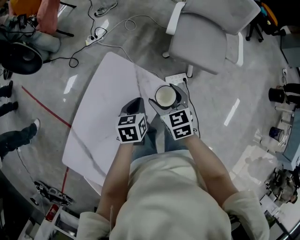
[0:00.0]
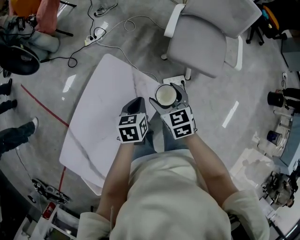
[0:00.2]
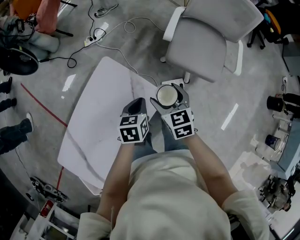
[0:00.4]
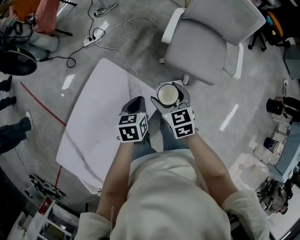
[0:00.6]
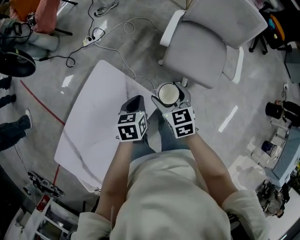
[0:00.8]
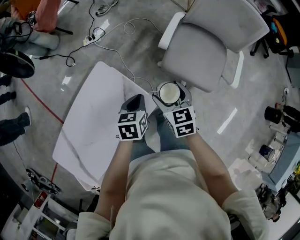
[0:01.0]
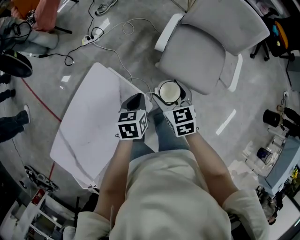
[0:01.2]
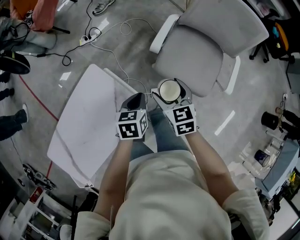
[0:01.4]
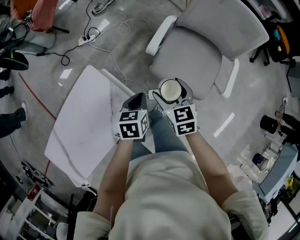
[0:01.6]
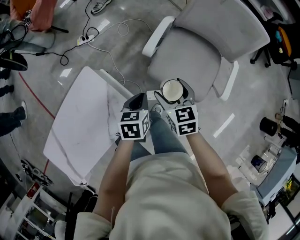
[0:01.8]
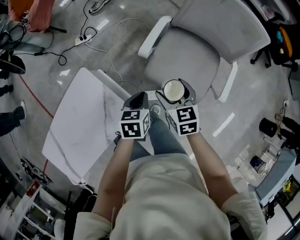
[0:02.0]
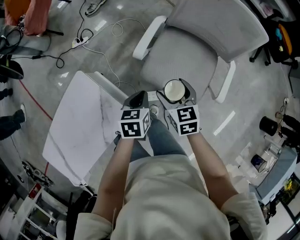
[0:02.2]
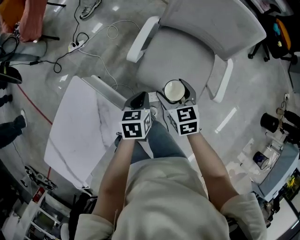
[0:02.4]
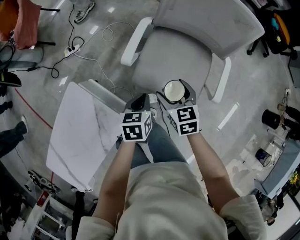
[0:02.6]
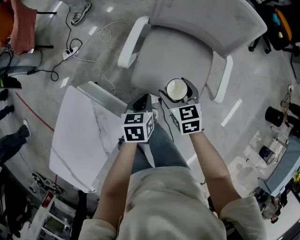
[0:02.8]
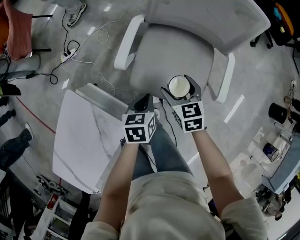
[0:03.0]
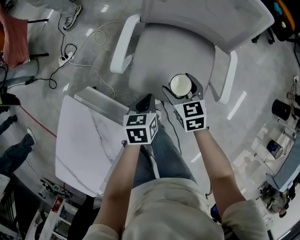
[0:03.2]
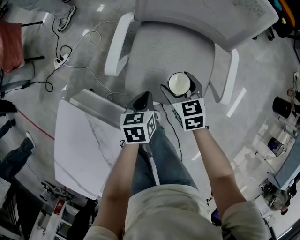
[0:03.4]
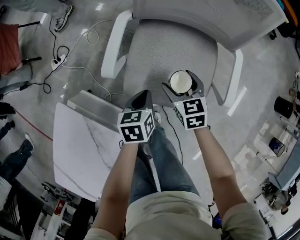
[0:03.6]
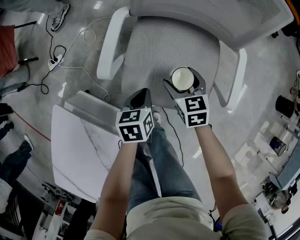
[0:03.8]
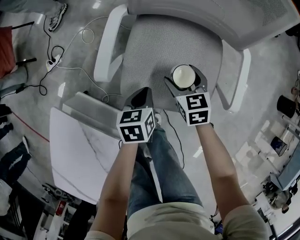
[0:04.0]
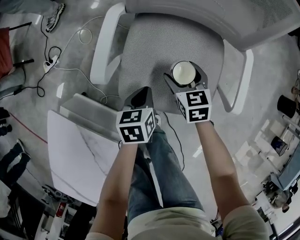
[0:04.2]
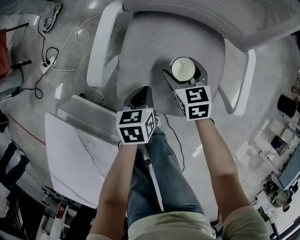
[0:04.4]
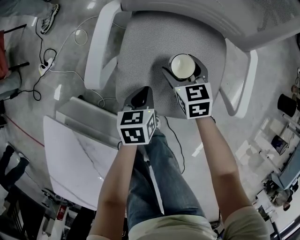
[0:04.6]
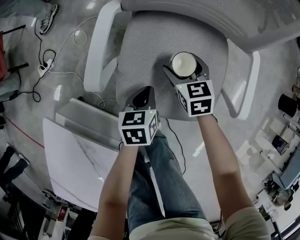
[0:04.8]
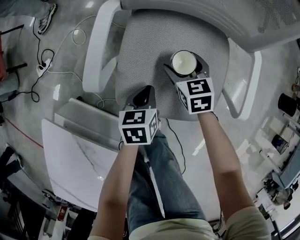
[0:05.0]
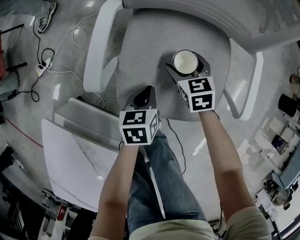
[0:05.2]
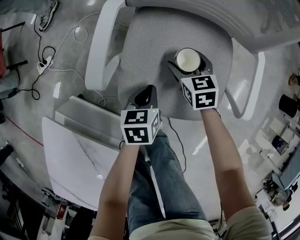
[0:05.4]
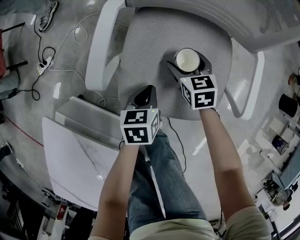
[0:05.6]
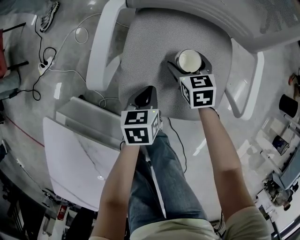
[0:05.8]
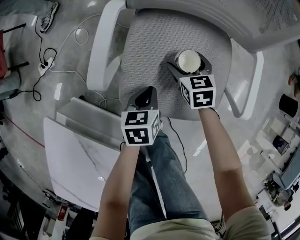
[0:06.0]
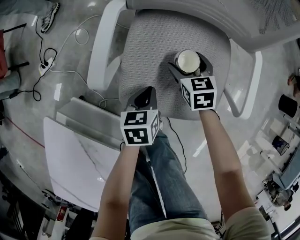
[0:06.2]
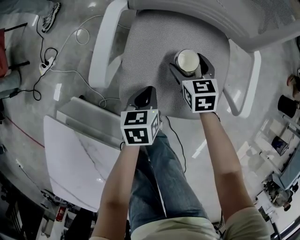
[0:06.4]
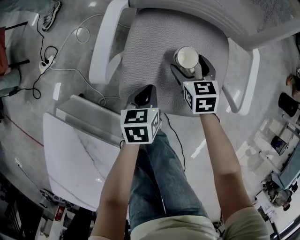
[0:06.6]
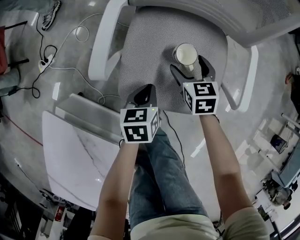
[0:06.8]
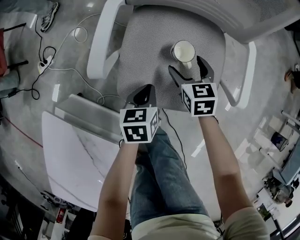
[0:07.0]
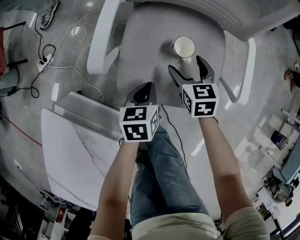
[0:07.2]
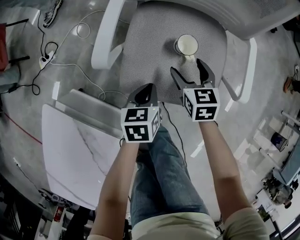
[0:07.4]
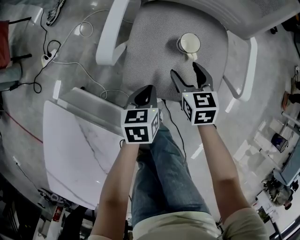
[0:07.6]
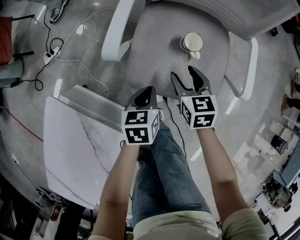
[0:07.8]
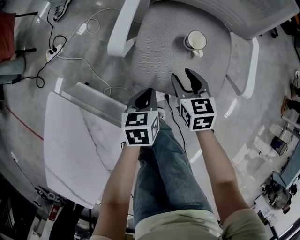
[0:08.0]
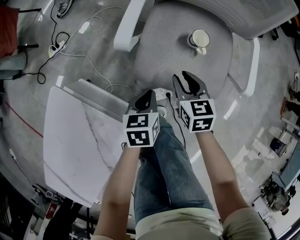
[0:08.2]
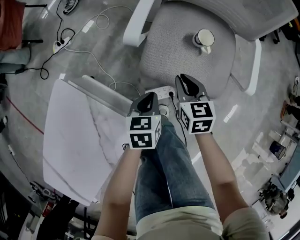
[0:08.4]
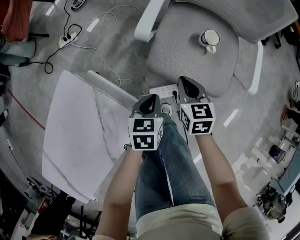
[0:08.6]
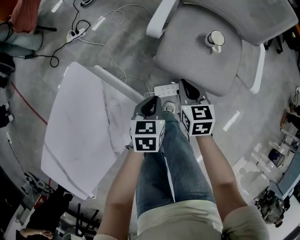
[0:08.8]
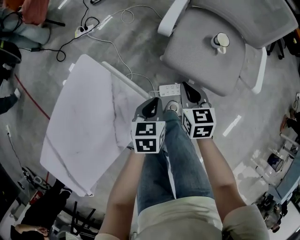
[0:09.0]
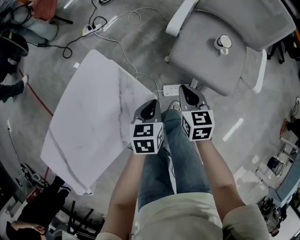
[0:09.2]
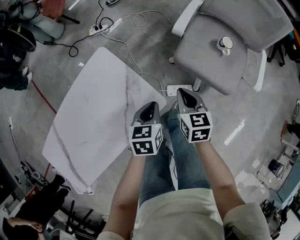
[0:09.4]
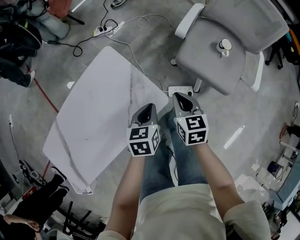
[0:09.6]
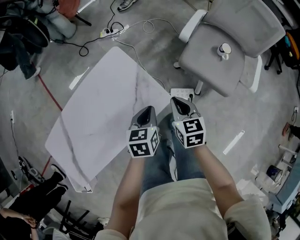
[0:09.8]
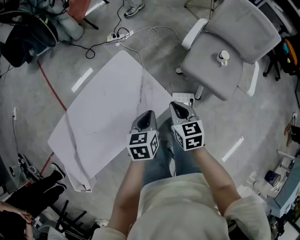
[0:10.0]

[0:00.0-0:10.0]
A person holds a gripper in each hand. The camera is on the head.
0:00.0 to 0:01.4: The two grippers go about 25 cm to the right and forward.
0:01.4 to 0:02.8: The right gripper moves to the right, forward and downward, roughly 20 cm. The left gripper shifts roughly 20 cm to the right and forward.
0:02.8 to 0:04.2: Both grippers move downward and forward, about 20 cm.
0:04.2 to 0:05.8: The right gripper is displaced downward by roughly 5 cm.
0:05.8 to 0:07.2: The right gripper travels backward and upward by approximately 10 cm.
0:07.2 to 0:08.6: The two grippers go about 20 cm backward and to the left. The right gripper closes its fingers.
0:08.6 to 0:10.0: Both grippers travel together to the left, backward and upward, about 35 cm. The left gripper rotates roughly 20 degrees; the right gripper rotates some 20 degrees.

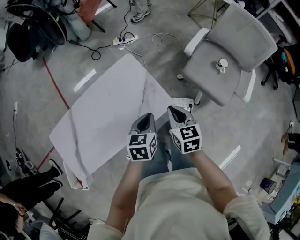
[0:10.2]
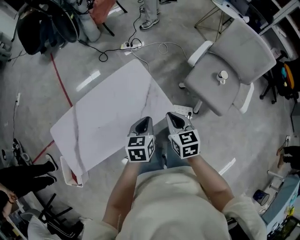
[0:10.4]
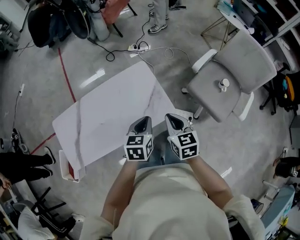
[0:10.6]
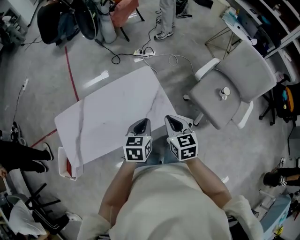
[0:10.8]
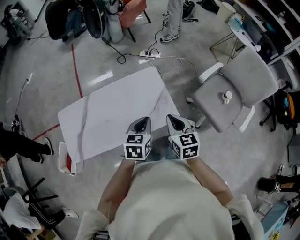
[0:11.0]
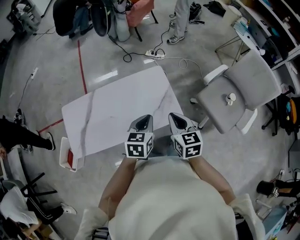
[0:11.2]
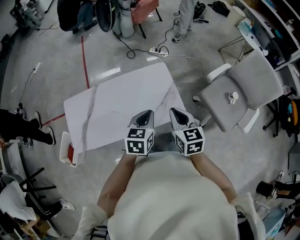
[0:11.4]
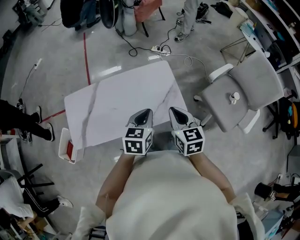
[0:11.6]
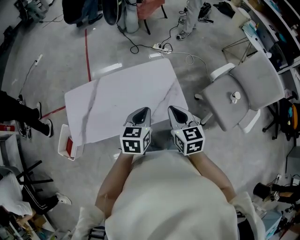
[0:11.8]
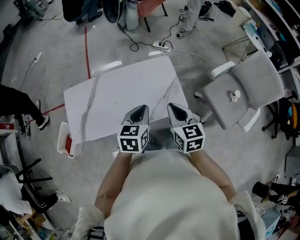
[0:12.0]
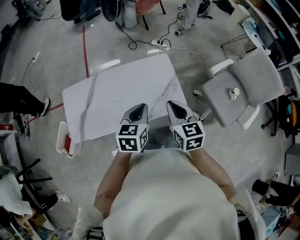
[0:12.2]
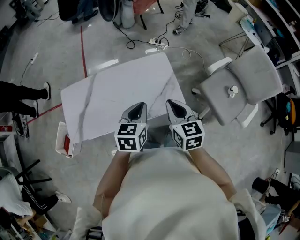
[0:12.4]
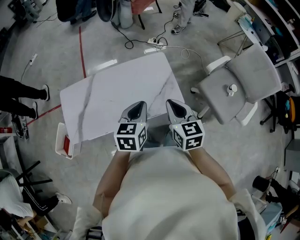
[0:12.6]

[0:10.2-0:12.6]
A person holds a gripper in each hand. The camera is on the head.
0:10.2 to 0:11.4: The right gripper is displaced upward and to the left by some 15 cm, while the left gripper travels upward, to the left and backward by approximately 15 cm.
0:11.4 to 0:12.6: The grippers move only a little.

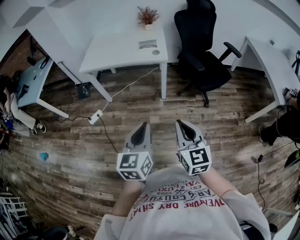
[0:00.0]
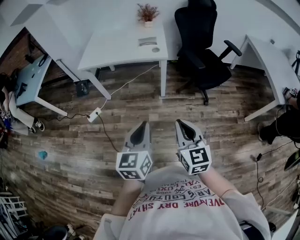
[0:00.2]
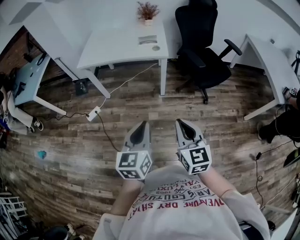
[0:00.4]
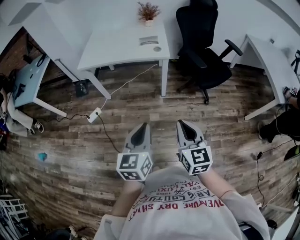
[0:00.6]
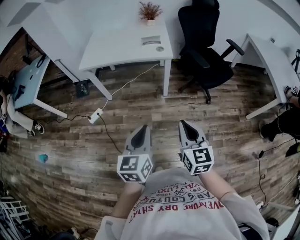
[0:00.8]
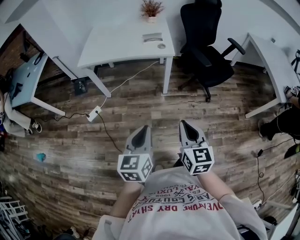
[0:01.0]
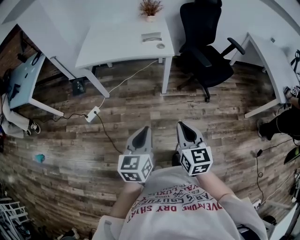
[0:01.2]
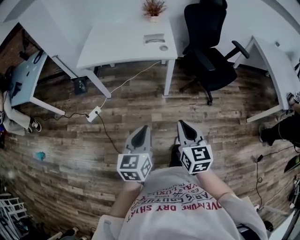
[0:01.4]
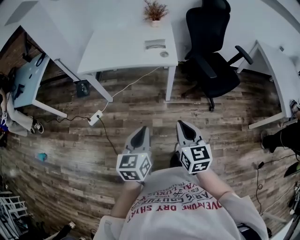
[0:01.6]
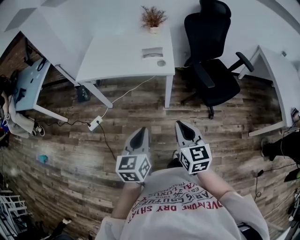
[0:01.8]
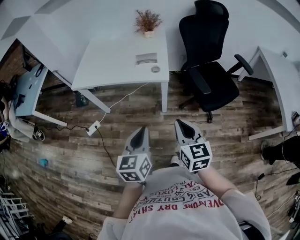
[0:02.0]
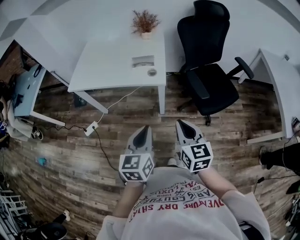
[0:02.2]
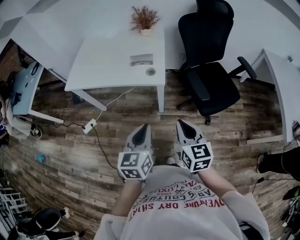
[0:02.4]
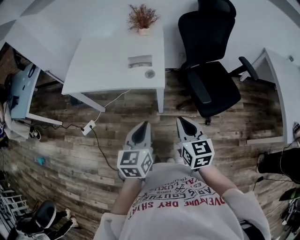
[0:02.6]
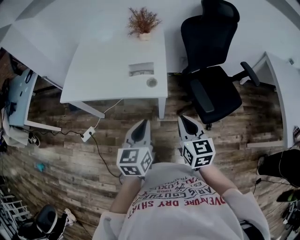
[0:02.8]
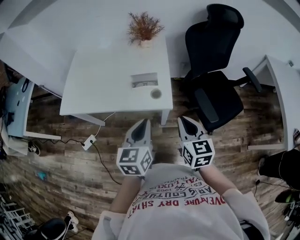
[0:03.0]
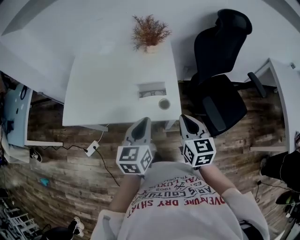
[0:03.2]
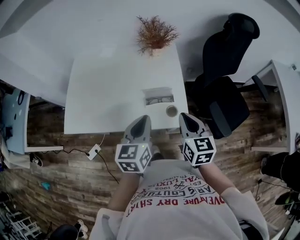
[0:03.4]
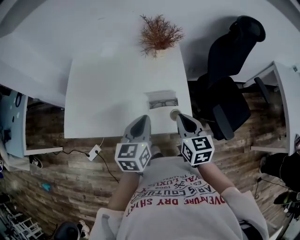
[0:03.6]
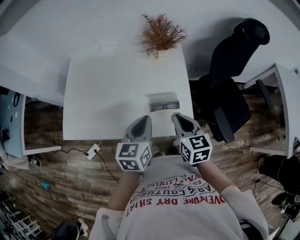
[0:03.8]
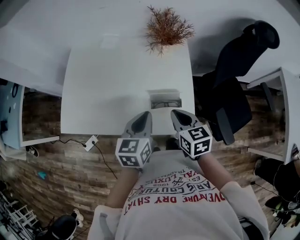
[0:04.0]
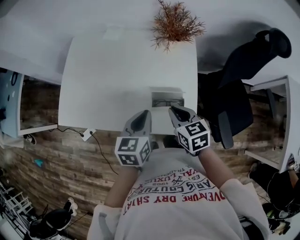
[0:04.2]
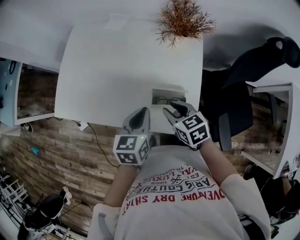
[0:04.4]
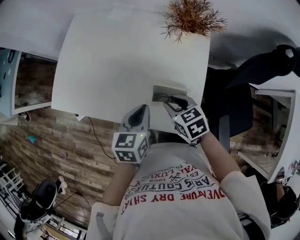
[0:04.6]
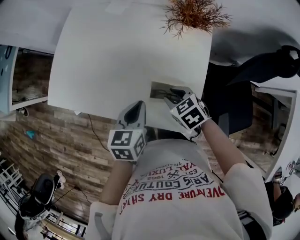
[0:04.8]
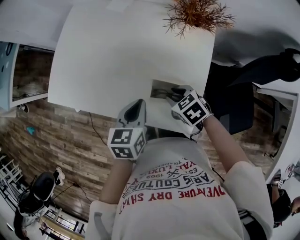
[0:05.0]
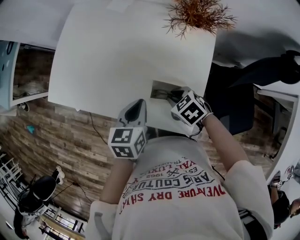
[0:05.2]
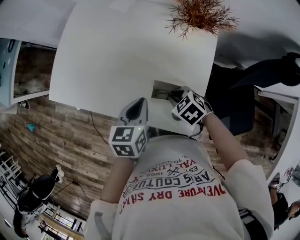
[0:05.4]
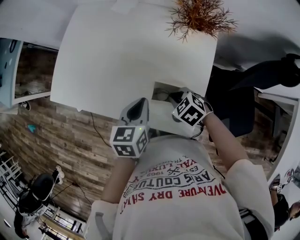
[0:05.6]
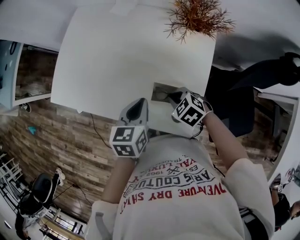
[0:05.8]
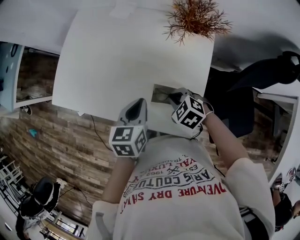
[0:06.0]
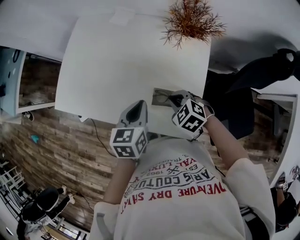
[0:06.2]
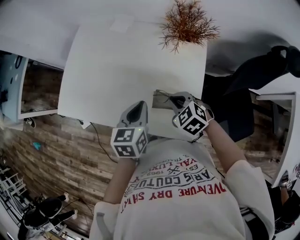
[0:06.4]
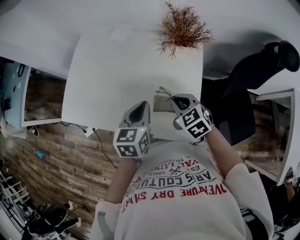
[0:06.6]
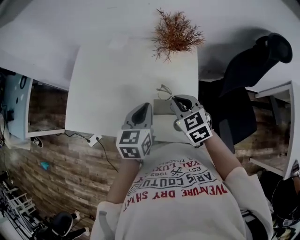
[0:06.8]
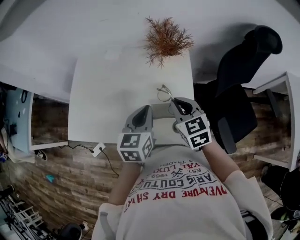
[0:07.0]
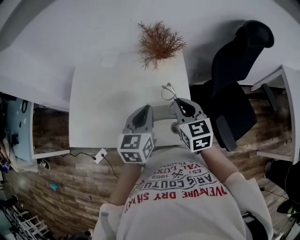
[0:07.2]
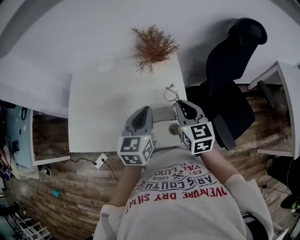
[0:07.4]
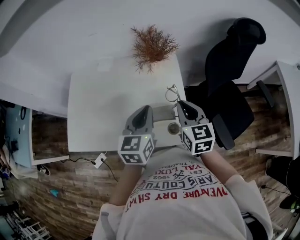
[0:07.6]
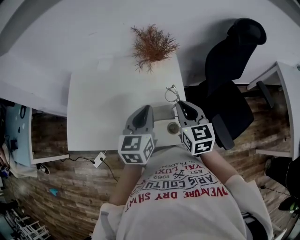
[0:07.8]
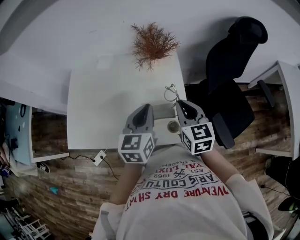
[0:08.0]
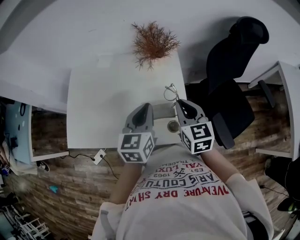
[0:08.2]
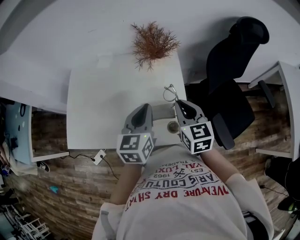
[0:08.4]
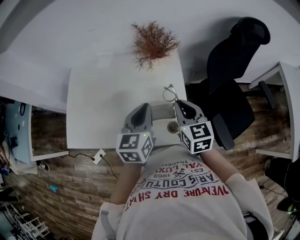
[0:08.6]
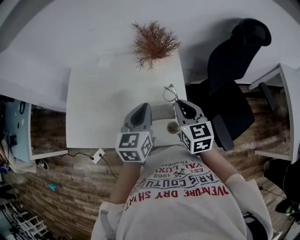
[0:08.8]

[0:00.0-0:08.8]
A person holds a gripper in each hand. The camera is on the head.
0:00.0 to 0:01.4: The left gripper goes approximately 10 cm to the left, forward and downward. Meanwhile the right gripper moves forward, to the left and downward, some 10 cm.
0:01.4 to 0:03.0: The two grippers travel together, forward, roughly 40 cm.
0:03.0 to 0:04.4: The left gripper heads forward and to the left, covering approximately 25 cm. The right gripper shifts approximately 30 cm forward, to the left and downward, swivels some 40 degrees, and opens.
0:04.4 to 0:05.8: The right gripper moves downward, about 10 cm, turns by some 40 degrees, and closes.
0:05.8 to 0:07.4: The left gripper goes approximately 15 cm upward, and rotates some 30 degrees; the right gripper heads upward, covering approximately 20 cm, and tips its fingers upward by approximately 40 degrees.
0:07.4 to 0:08.8: Both grippers stay about where they are.

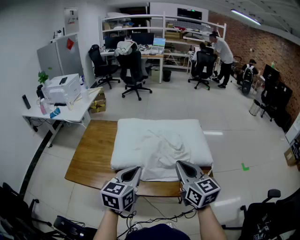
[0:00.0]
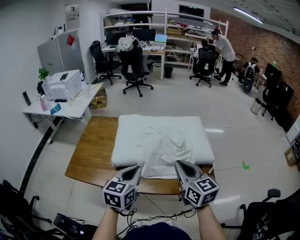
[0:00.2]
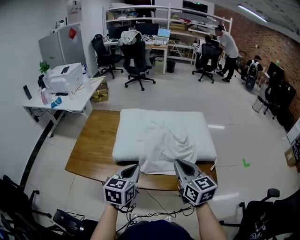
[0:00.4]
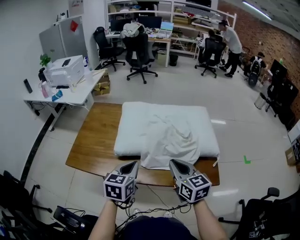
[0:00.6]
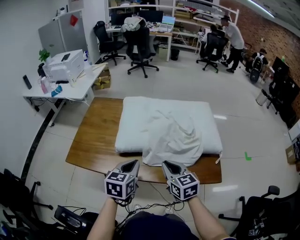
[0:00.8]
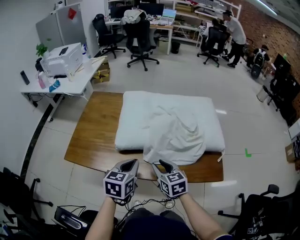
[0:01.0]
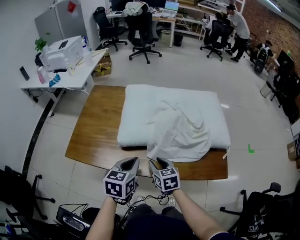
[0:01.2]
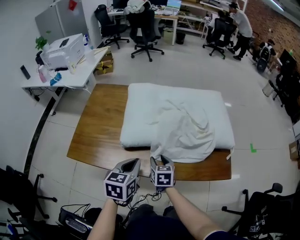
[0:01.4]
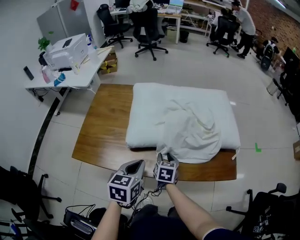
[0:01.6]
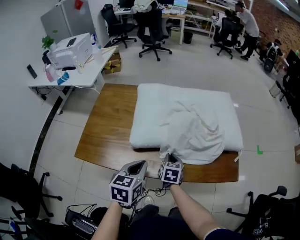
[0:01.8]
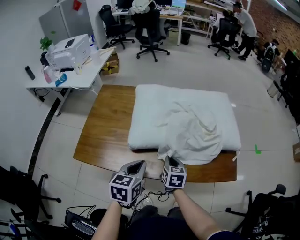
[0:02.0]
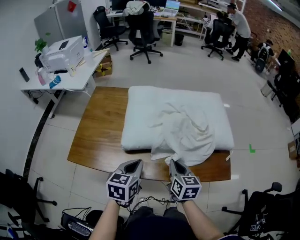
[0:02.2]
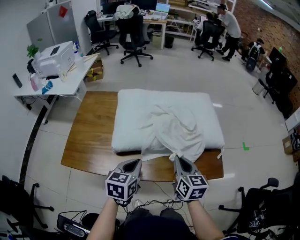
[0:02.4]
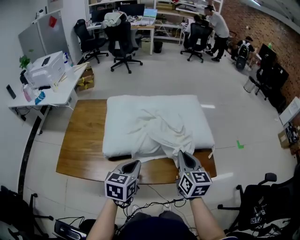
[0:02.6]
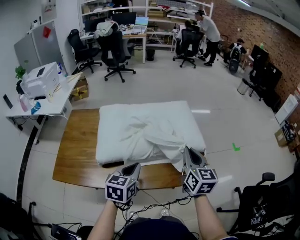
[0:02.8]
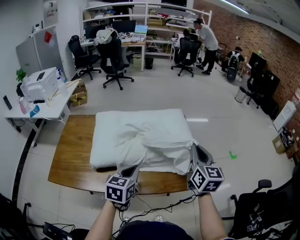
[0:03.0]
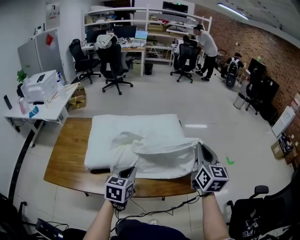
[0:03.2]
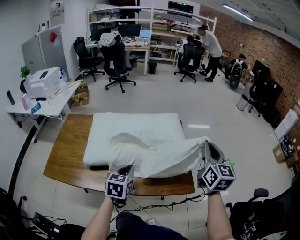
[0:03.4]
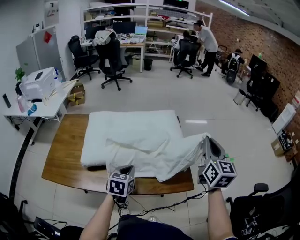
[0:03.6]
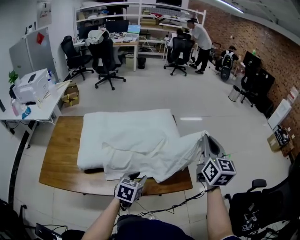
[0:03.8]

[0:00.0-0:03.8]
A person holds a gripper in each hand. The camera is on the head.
0:00.0 to 0:01.2: The left gripper is displaced downward and to the left by some 15 cm; the right gripper heads downward and to the left, covering about 30 cm, points its fingers approximately 30 degrees further downward, and opens up.
0:01.2 to 0:02.6: The left gripper heads to the right, covering some 5 cm, while the right gripper heads to the right and upward, covering roughly 25 cm, turns by about 30 degrees, and closes.
0:02.6 to 0:03.8: The left gripper goes roughly 15 cm to the right and downward, and opens, while the right gripper moves to the right and upward, approximately 25 cm, and changes its angle by some 20 degrees.
